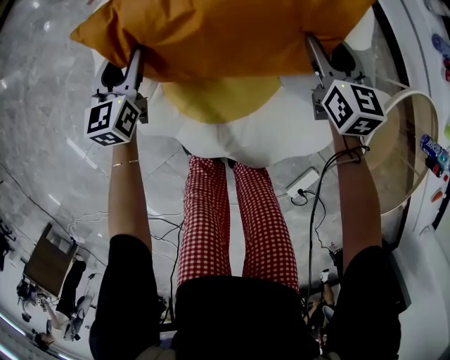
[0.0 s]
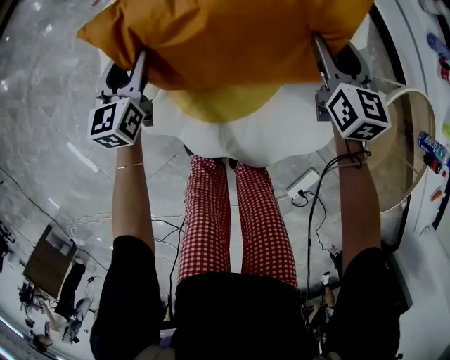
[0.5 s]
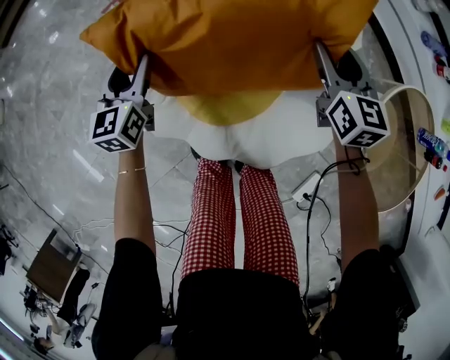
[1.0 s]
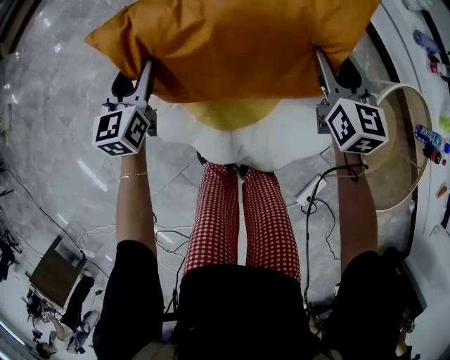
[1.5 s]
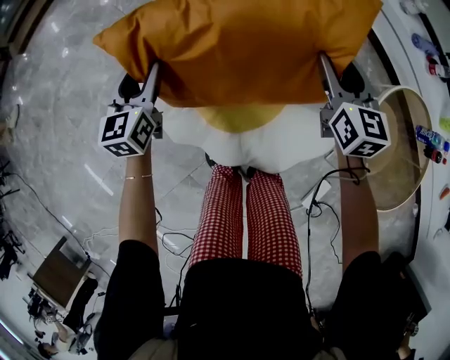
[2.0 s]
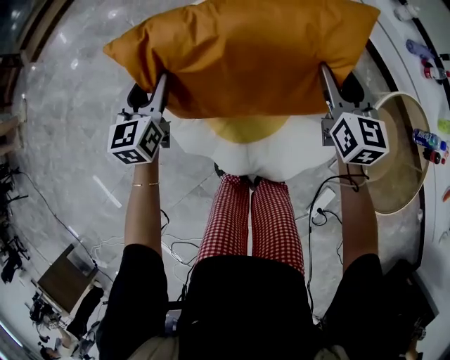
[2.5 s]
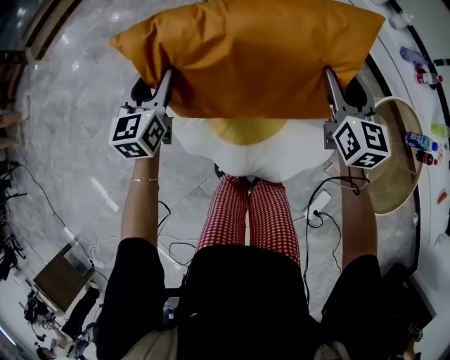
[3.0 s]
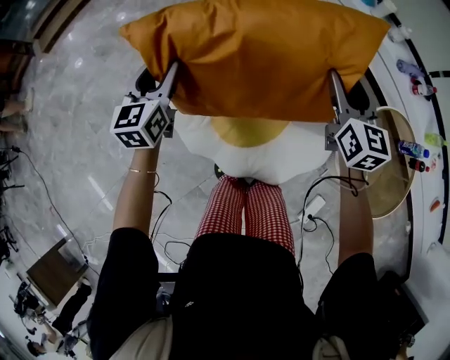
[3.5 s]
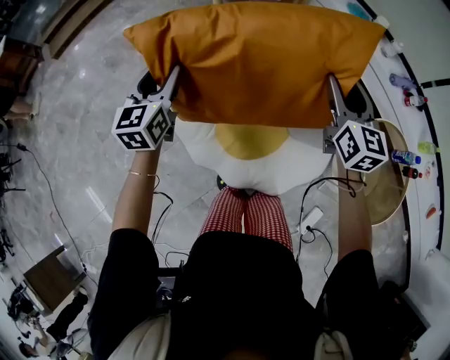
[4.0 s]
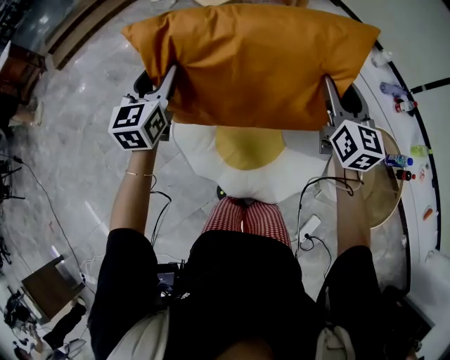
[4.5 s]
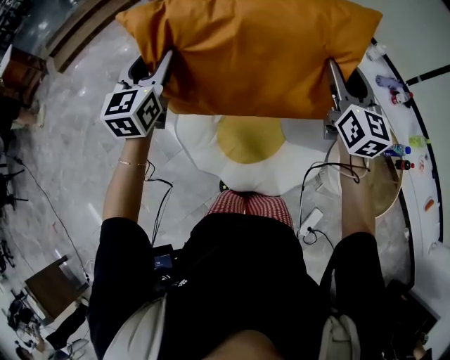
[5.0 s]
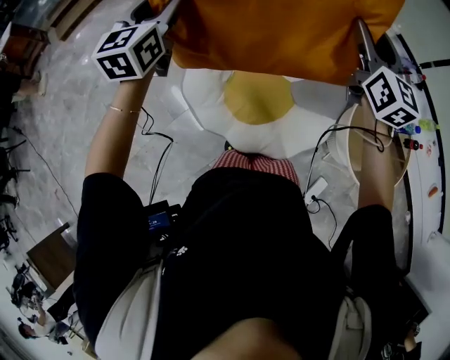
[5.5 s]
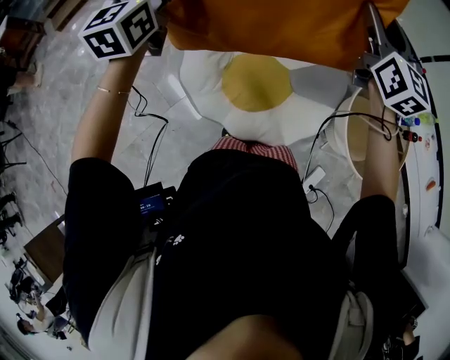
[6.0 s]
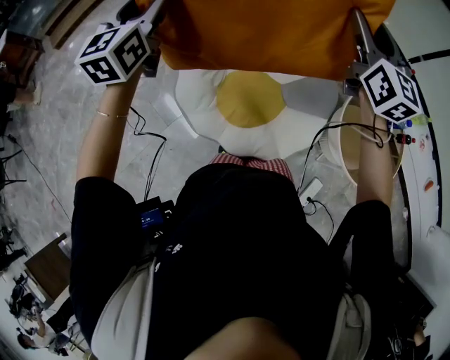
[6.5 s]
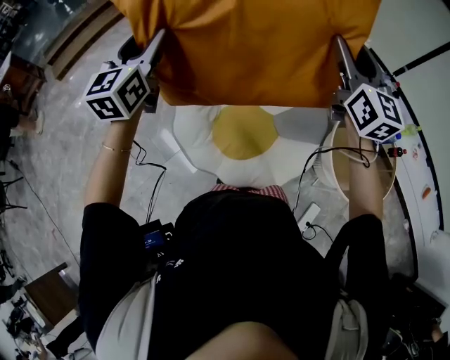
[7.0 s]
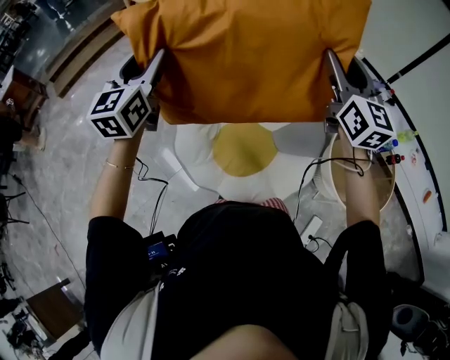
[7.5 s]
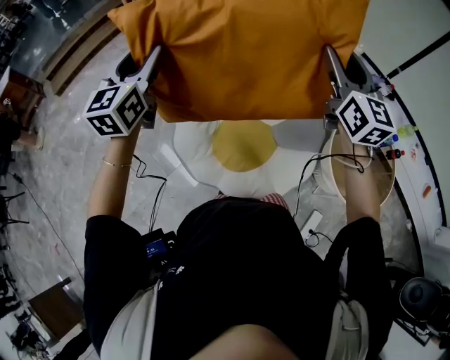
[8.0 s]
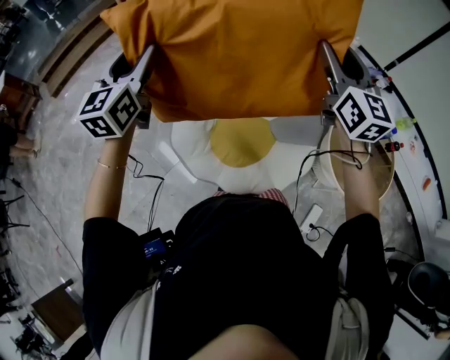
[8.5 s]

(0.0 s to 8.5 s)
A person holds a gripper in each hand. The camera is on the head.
0.0 s - 2.0 s: Both grippers move upward, approximately 15 cm.
2.0 s - 4.0 s: Both grippers travel together upward, approximately 20 cm.
4.0 s - 6.5 s: Both grippers move upward, approximately 20 cm.
6.5 s - 8.5 s: The grippers make only small movements.

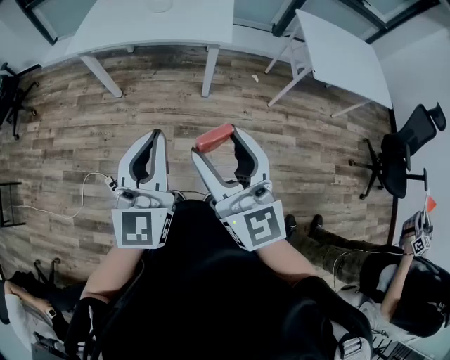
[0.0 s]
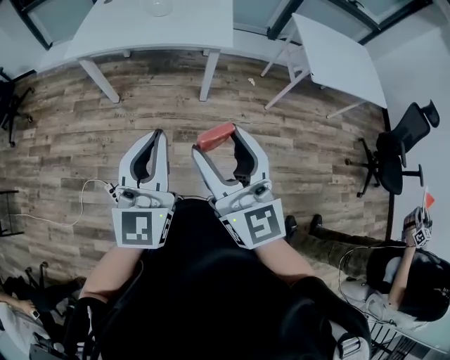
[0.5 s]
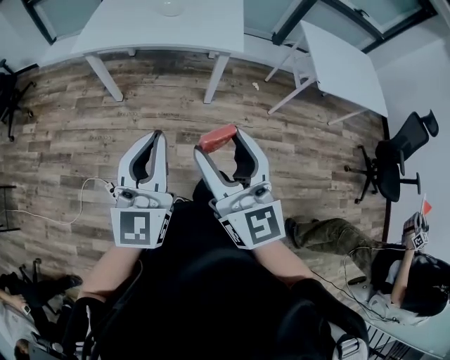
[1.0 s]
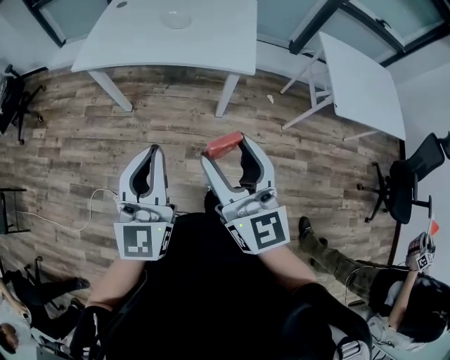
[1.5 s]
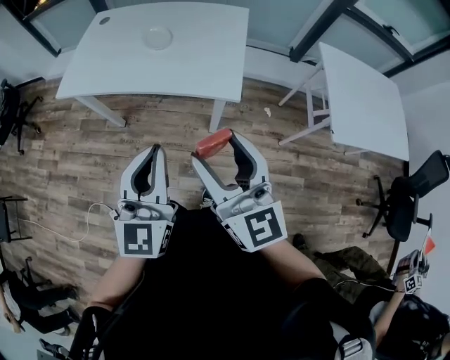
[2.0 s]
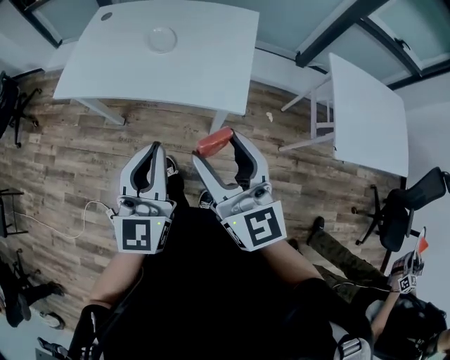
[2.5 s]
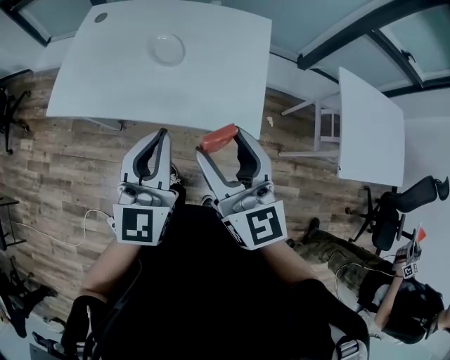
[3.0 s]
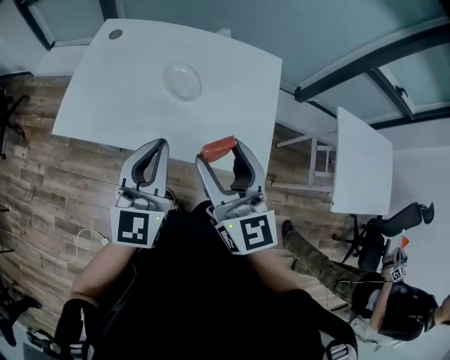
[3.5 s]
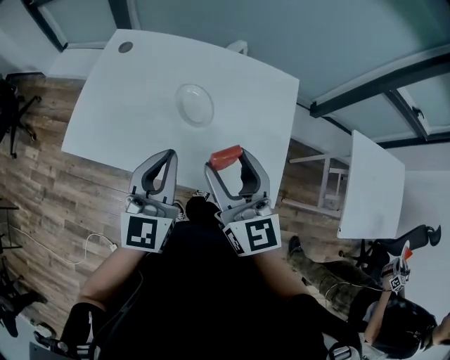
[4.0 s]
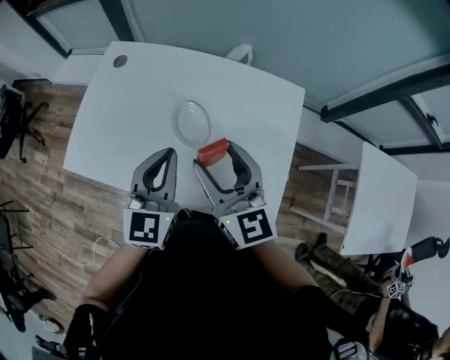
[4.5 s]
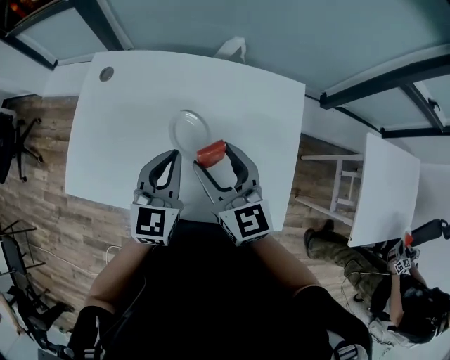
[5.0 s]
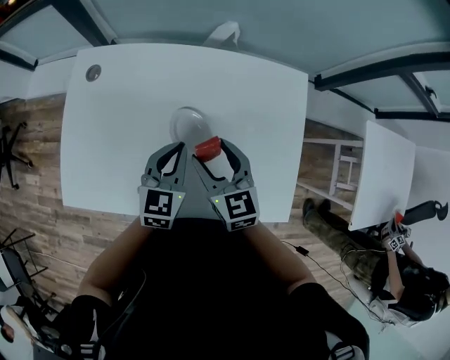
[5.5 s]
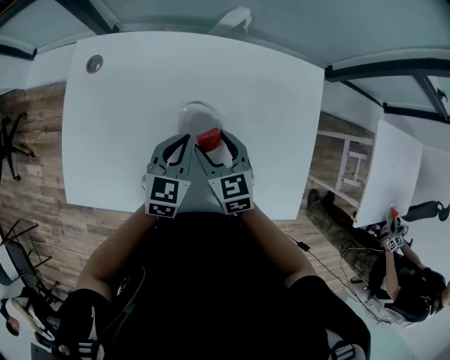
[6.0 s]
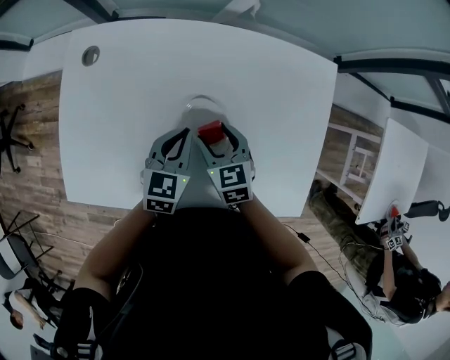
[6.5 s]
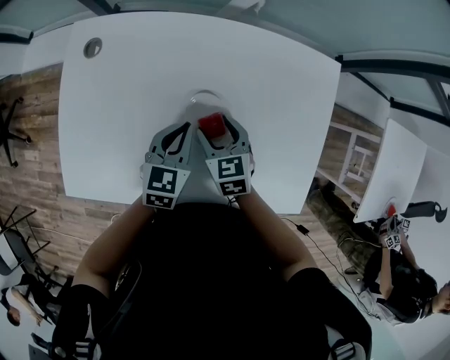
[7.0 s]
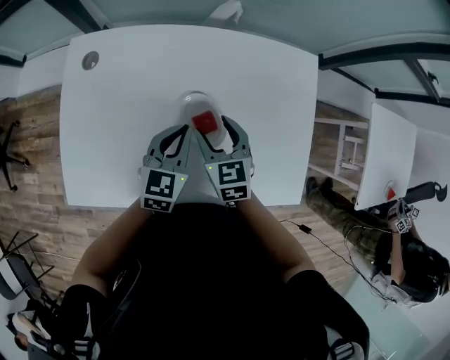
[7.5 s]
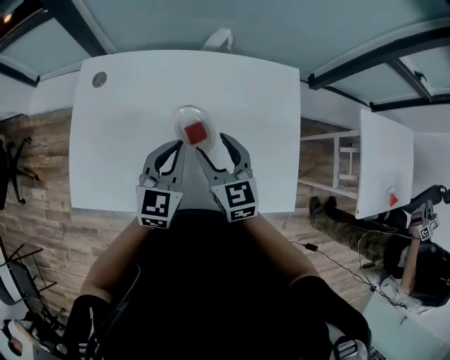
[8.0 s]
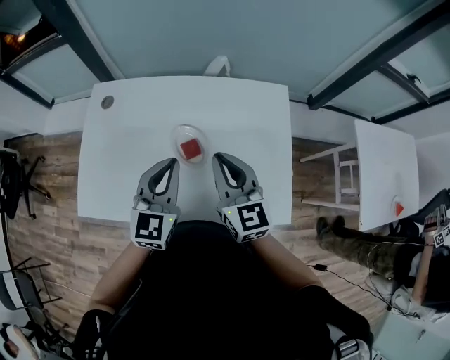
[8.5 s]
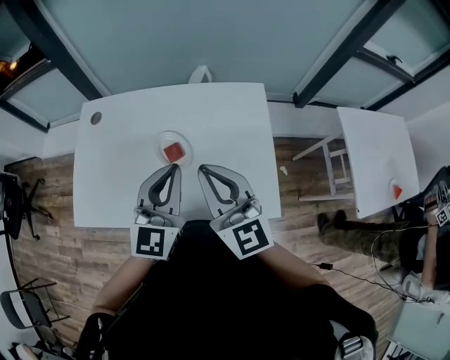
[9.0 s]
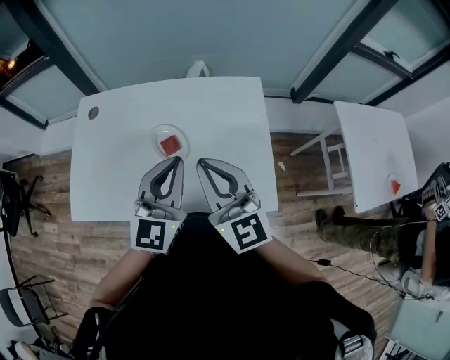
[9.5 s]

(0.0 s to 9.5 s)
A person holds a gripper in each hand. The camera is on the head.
0.0 s - 2.0 s: Both grippers move forward, about 25 cm.
2.0 s - 4.0 s: The two grippers go roughly 35 cm forward.
4.0 s - 5.5 s: Both grippers move forward and downward, some 20 cm. The right gripper swivels approximately 20 degrees. The left gripper rotates approximately 20 degrees.
5.5 s - 7.5 s: The right gripper goes approximately 5 cm downward.
7.5 s - 9.5 s: The grippers both shift upward, backward and to the right by some 25 cm. The right gripper points its fingers about 40 degrees further upward, and closes; the left gripper swivels roughly 30 degrees.

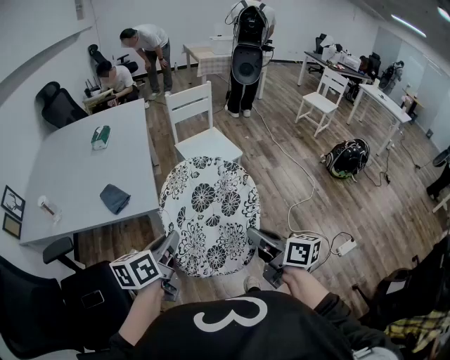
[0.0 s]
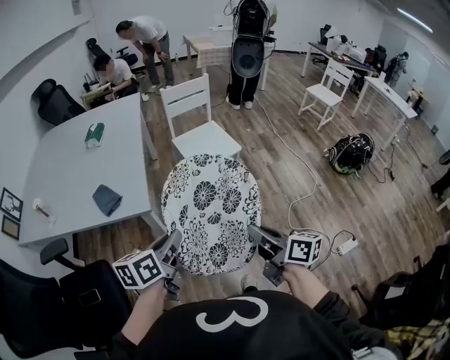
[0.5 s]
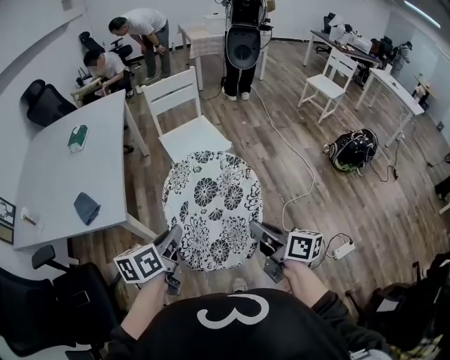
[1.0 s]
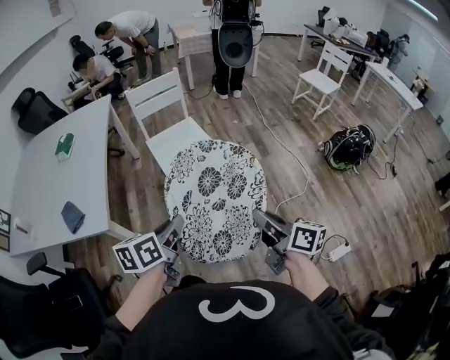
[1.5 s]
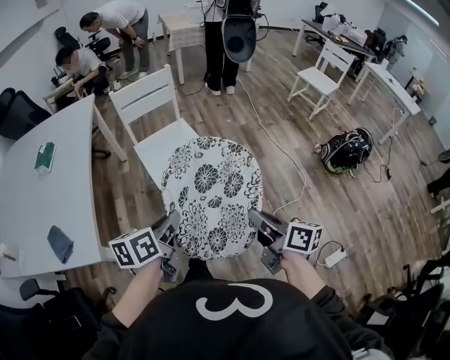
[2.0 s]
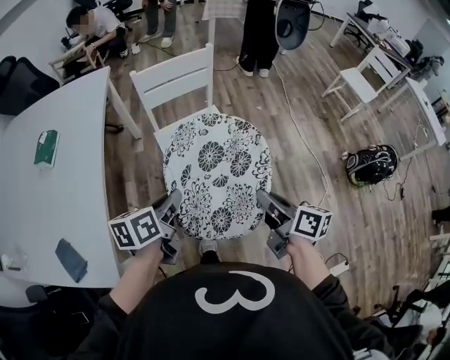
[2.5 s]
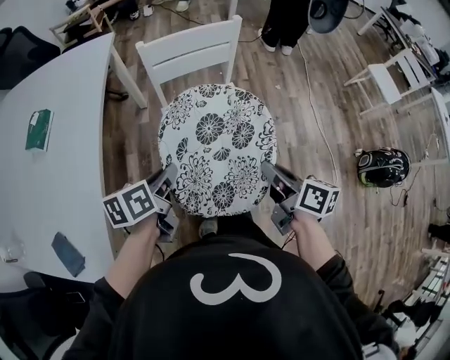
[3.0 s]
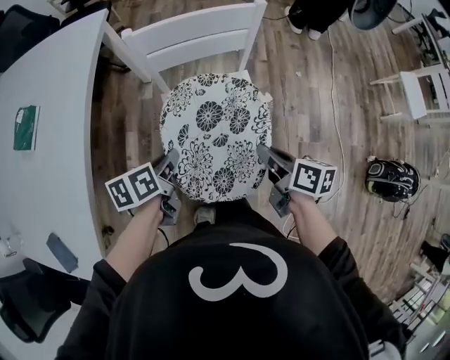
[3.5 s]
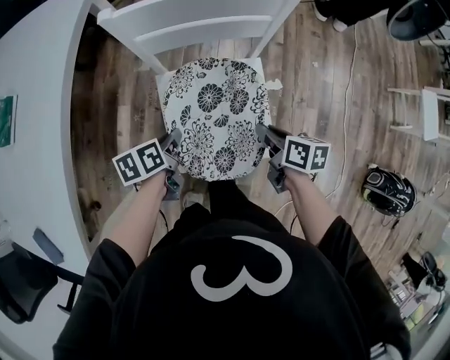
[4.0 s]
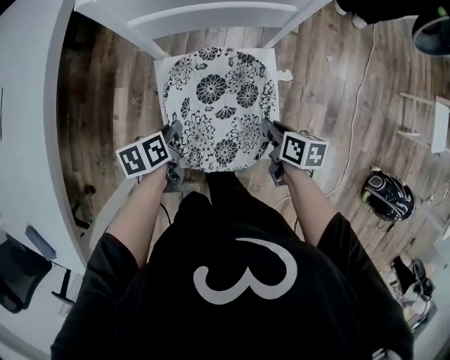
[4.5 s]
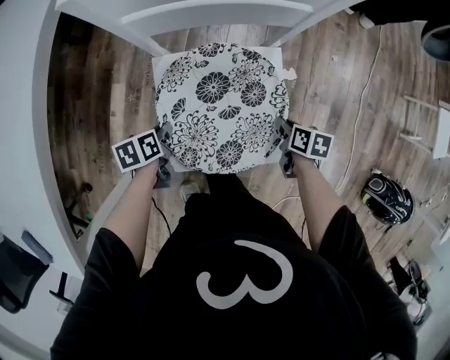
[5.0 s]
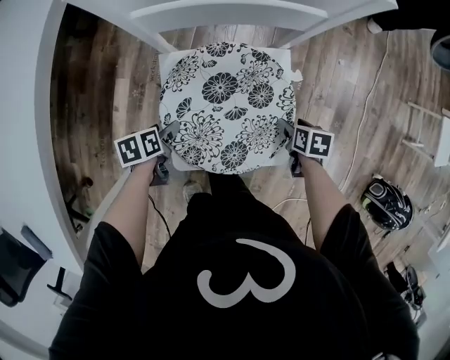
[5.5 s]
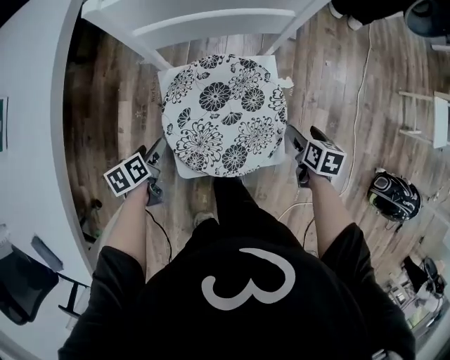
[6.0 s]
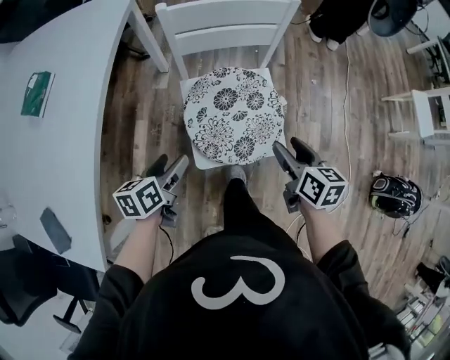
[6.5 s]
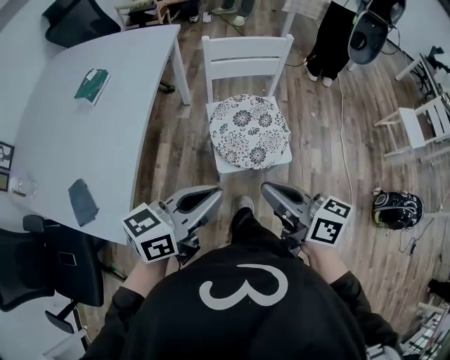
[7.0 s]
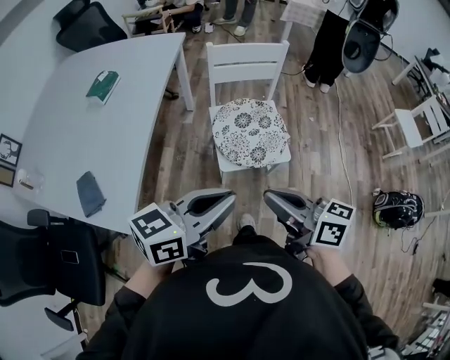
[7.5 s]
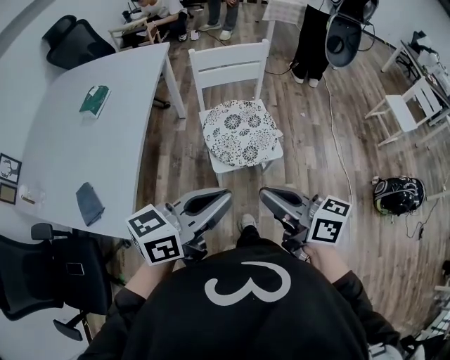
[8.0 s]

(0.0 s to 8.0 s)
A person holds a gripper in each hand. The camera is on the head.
0.0 s - 2.0 s: Both grippers travel together forward, to the right and downward, about 35 cm.
2.0 s - 4.0 s: The right gripper swings forward and backward, about 25 cm each way, with 2 reversals, while the left gripper moves up and down over approximately 30 cm, changing direction 2 times, and rotates approximately 30 degrees.
4.0 s - 6.0 s: The left gripper goes approximately 15 cm to the left and downward, and opens its fingers; the right gripper shifts approximately 15 cm to the right and downward, turns by about 30 degrees, and opens.
6.0 s - 8.0 s: The left gripper moves upward and backward, roughly 60 cm, angles its fingers upward, by approximately 50 degrees, and closes. The right gripper travels upward, backward and to the left by some 60 cm, tips its fingers upward by some 50 degrees, and closes.

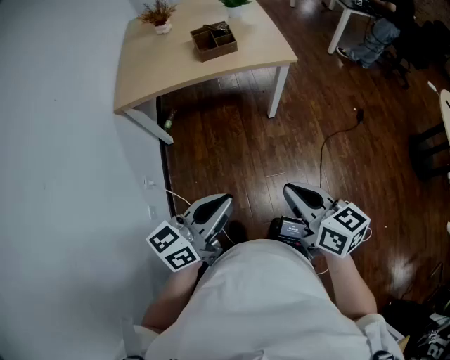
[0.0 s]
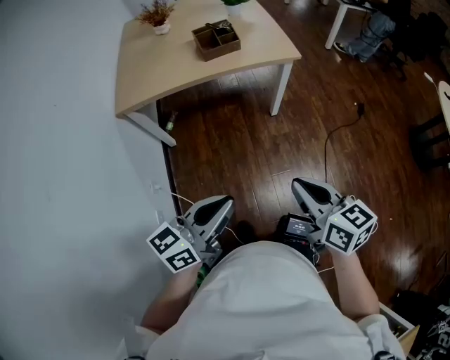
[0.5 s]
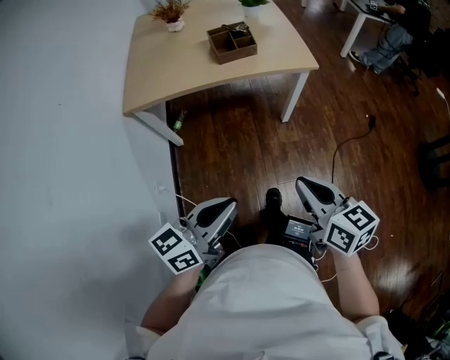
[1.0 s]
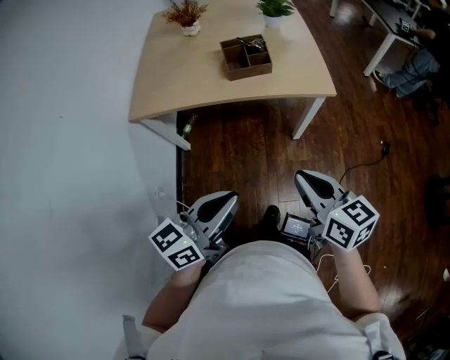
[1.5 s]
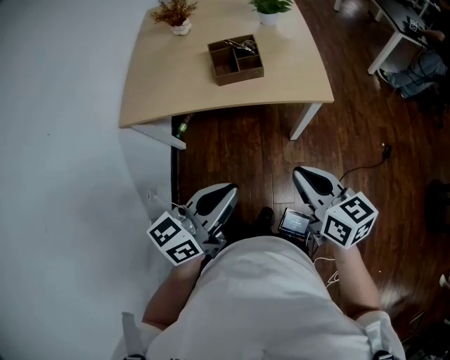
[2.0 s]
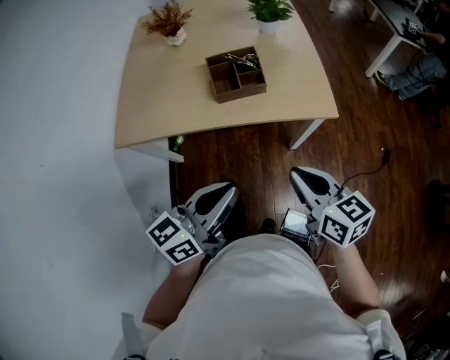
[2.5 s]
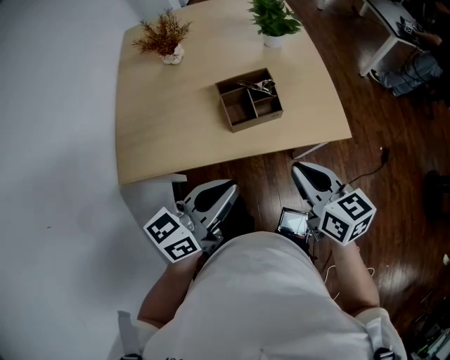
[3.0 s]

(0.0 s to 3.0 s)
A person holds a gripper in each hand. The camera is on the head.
0.0 s - 1.5 s: The grippers both shift forward by approximately 20 cm.
1.5 s - 3.0 s: Both grippers move forward, approximately 30 cm.
